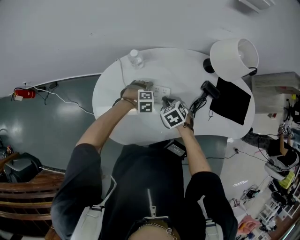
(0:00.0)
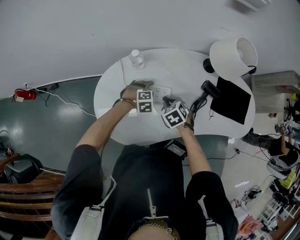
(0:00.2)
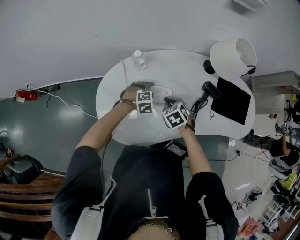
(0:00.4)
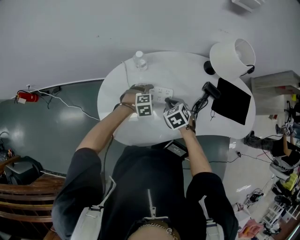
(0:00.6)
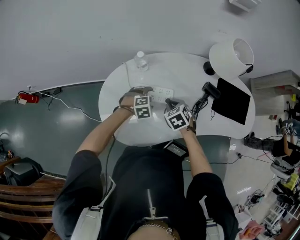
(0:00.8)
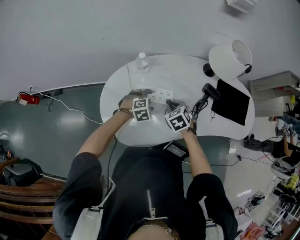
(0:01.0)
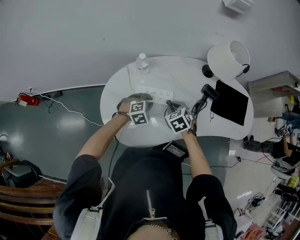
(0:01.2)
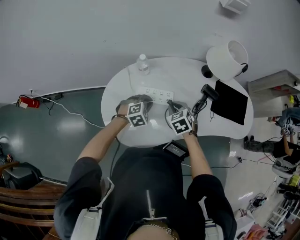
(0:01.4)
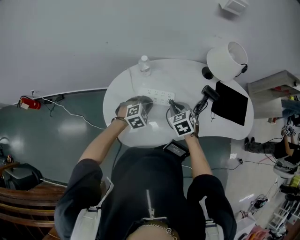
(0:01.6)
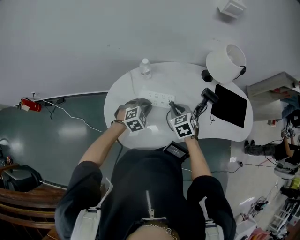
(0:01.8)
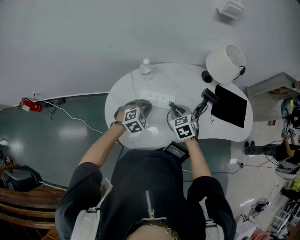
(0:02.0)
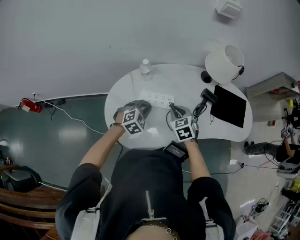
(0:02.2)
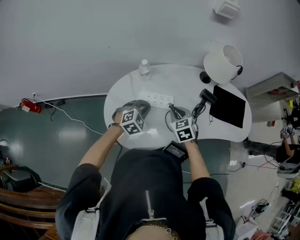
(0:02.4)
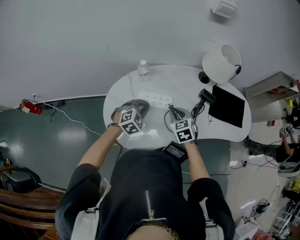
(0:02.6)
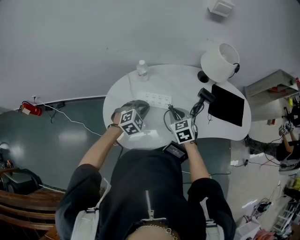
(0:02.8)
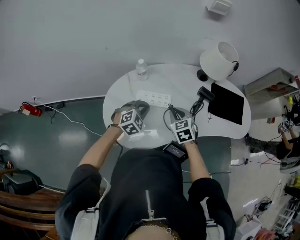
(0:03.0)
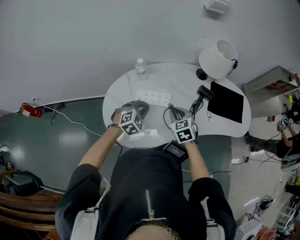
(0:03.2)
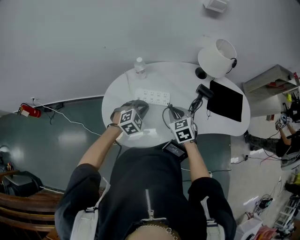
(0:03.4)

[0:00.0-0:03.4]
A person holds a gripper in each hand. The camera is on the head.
0:00.0 to 0:01.6: The right gripper goes about 5 cm upward; the left gripper is displaced upward and backward by some 15 cm, rotates some 30 degrees, and closes.
0:01.6 to 0:03.4: The left gripper shifts by some 5 cm. The right gripper changes place by approximately 5 cm.

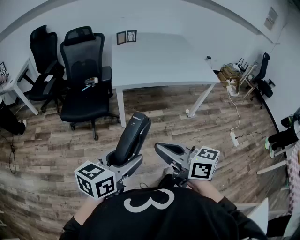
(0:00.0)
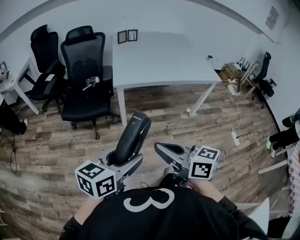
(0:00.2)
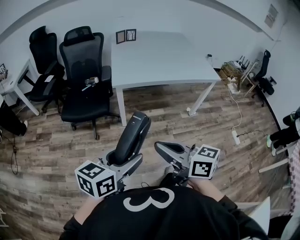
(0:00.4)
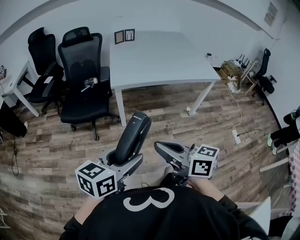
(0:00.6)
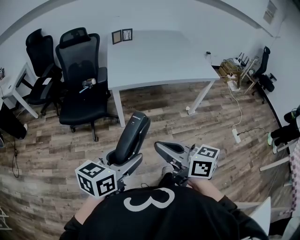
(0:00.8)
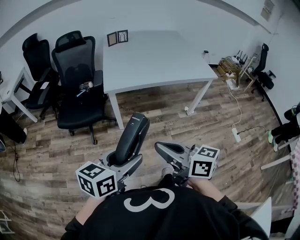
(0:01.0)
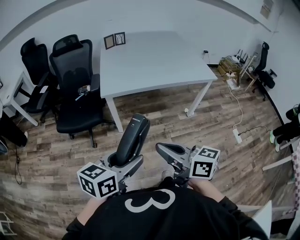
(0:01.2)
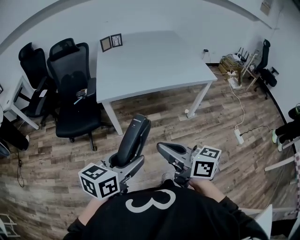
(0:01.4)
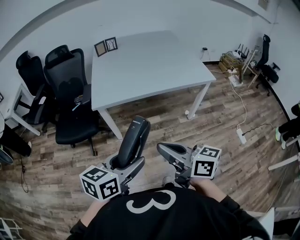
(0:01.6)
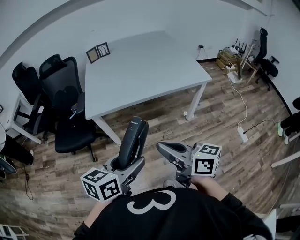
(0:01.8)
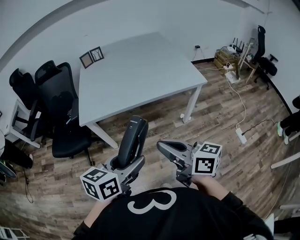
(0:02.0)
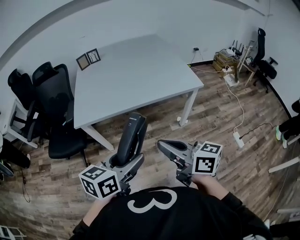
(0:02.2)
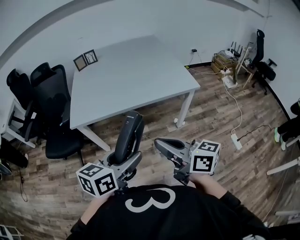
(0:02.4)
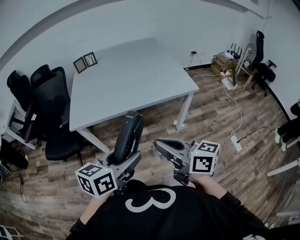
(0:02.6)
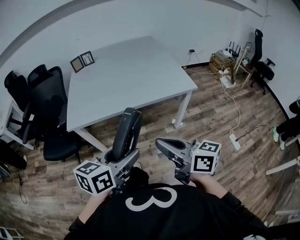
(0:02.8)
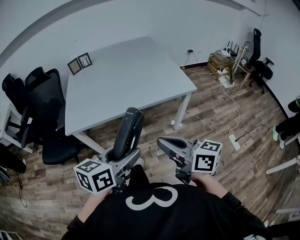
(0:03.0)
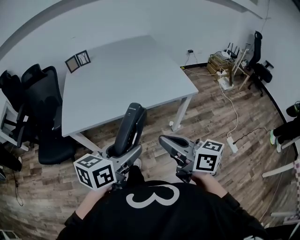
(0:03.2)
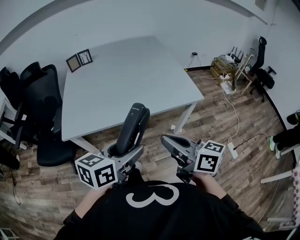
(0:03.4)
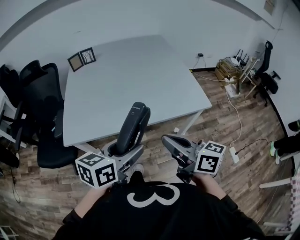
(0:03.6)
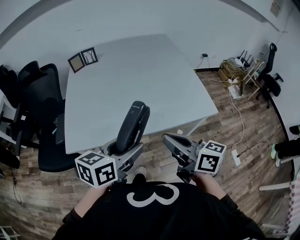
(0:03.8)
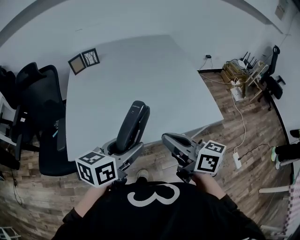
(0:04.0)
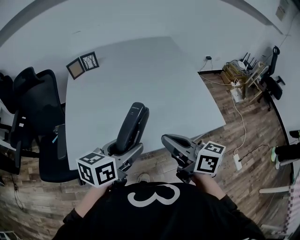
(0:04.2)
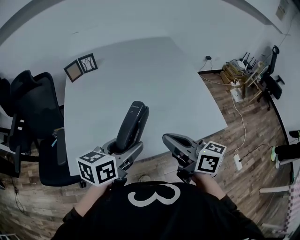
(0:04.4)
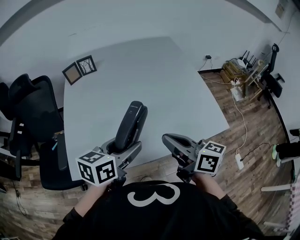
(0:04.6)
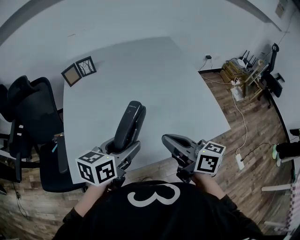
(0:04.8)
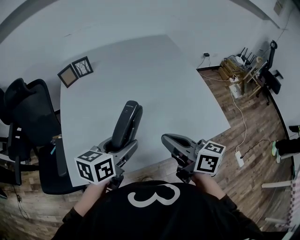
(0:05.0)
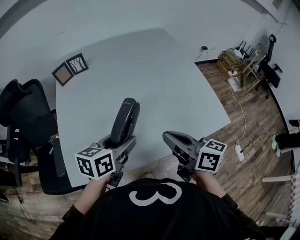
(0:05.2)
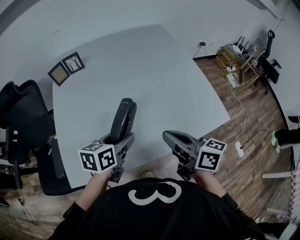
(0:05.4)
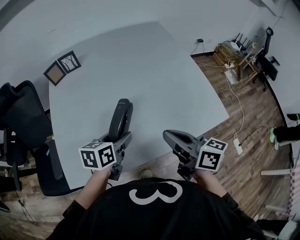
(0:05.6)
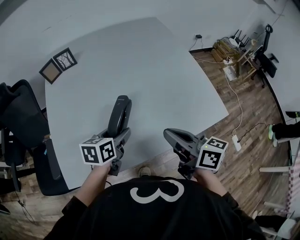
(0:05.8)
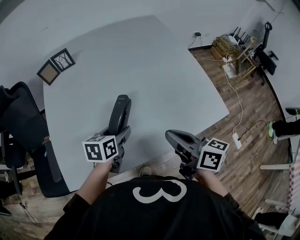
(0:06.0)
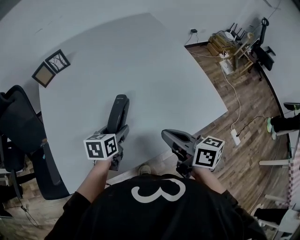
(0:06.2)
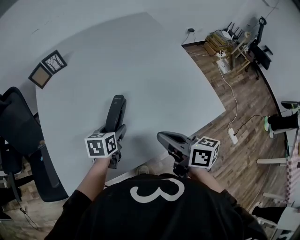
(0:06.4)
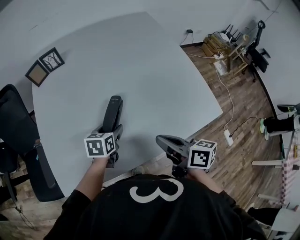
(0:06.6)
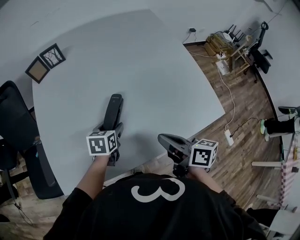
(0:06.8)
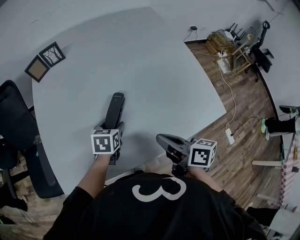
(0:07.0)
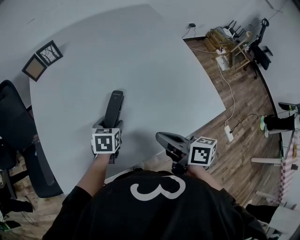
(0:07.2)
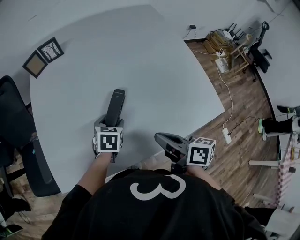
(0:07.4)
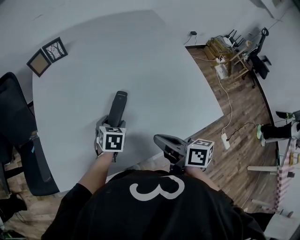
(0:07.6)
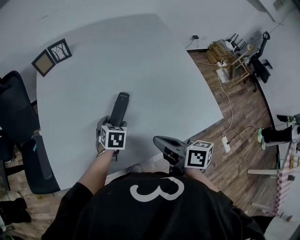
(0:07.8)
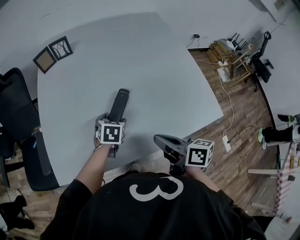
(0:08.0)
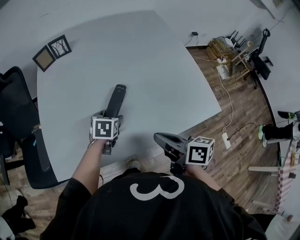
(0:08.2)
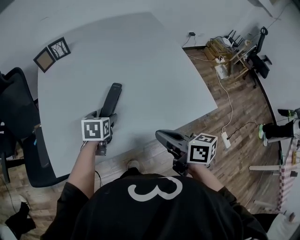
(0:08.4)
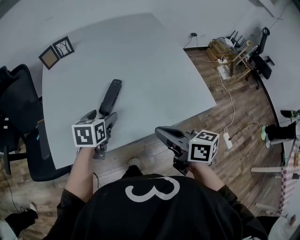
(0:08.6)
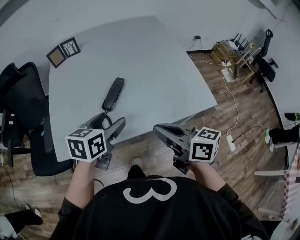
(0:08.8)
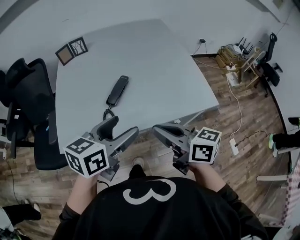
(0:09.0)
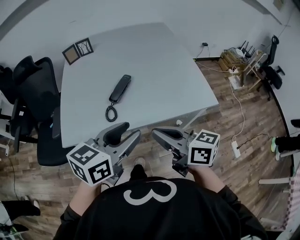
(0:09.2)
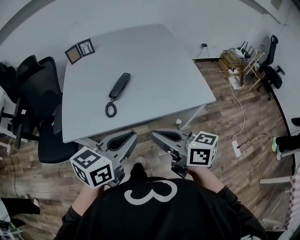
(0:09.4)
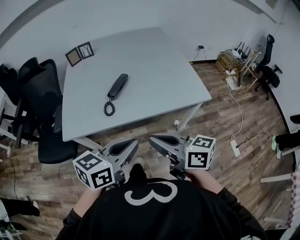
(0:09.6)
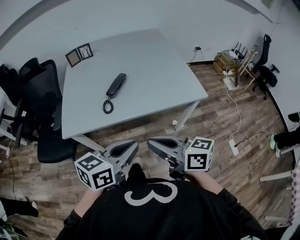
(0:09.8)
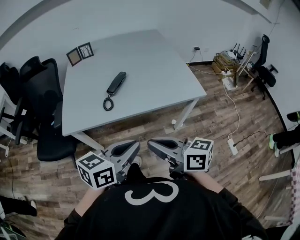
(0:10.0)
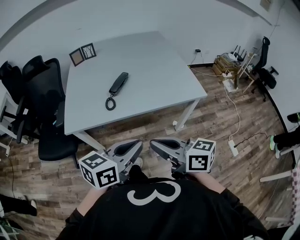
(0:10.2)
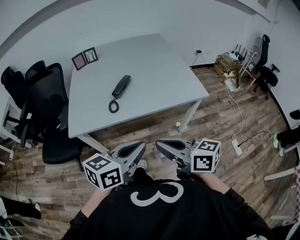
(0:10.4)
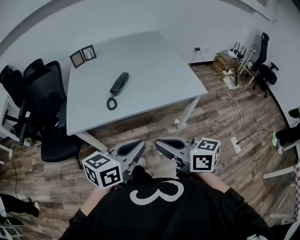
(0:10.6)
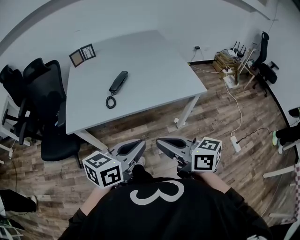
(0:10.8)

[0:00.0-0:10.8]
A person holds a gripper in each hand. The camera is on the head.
0:00.0 to 0:01.6: Both grippers travel together to the right and forward, roughly 20 cm.
0:01.6 to 0:03.0: Both grippers move to the right and forward, approximately 20 cm.
0:03.0 to 0:04.6: The two grippers go some 35 cm forward.
0:04.6 to 0:06.2: The left gripper travels downward and forward by some 20 cm, while the right gripper travels downward by approximately 10 cm.
0:06.2 to 0:07.8: The left gripper is displaced downward by about 5 cm, and turns by roughly 30 degrees.
0:07.8 to 0:09.2: The right gripper travels backward and upward by approximately 20 cm, and rotates approximately 30 degrees, while the left gripper is displaced backward and upward by roughly 40 cm, and tilts its fingers roughly 40 degrees upward.
0:09.2 to 0:10.8: The two grippers go roughly 15 cm backward. The left gripper closes up.

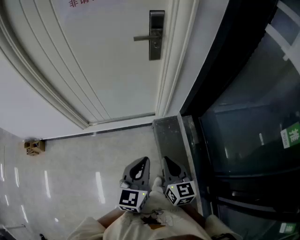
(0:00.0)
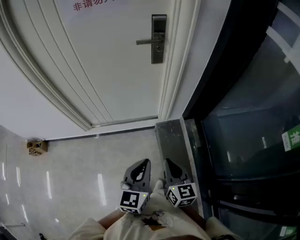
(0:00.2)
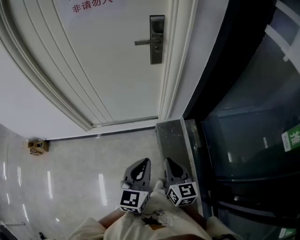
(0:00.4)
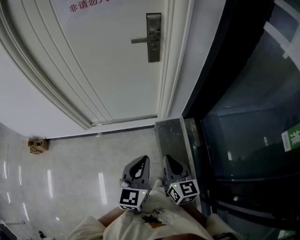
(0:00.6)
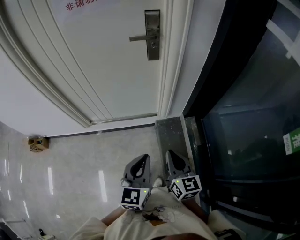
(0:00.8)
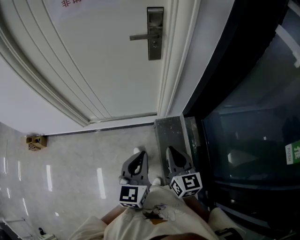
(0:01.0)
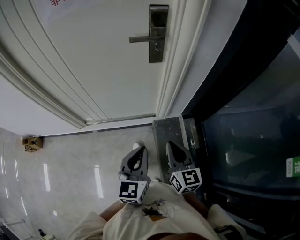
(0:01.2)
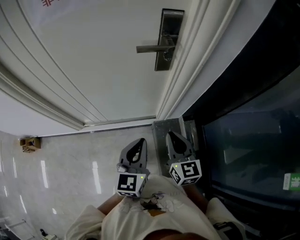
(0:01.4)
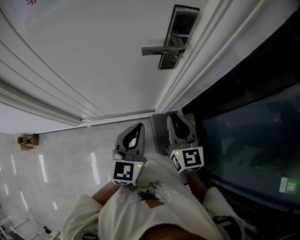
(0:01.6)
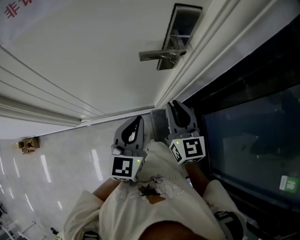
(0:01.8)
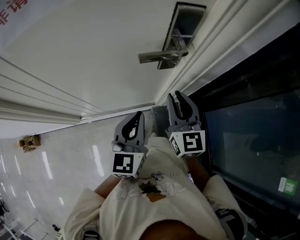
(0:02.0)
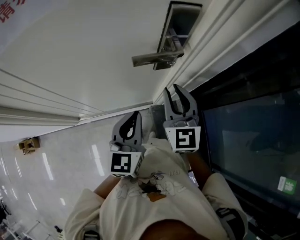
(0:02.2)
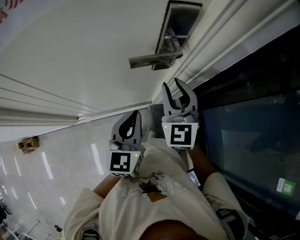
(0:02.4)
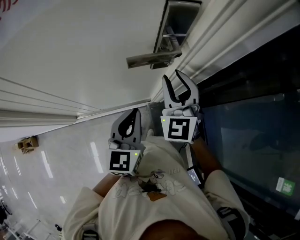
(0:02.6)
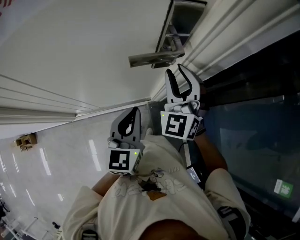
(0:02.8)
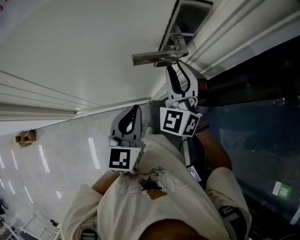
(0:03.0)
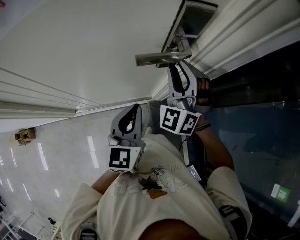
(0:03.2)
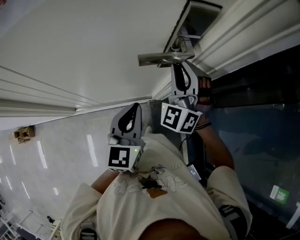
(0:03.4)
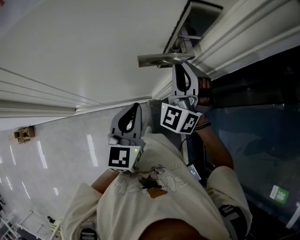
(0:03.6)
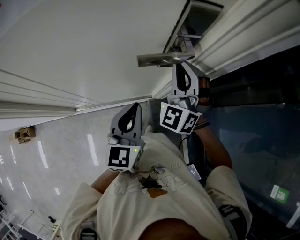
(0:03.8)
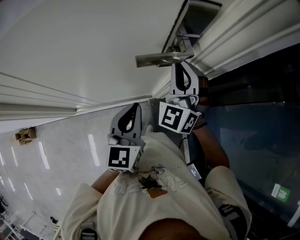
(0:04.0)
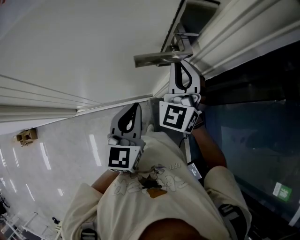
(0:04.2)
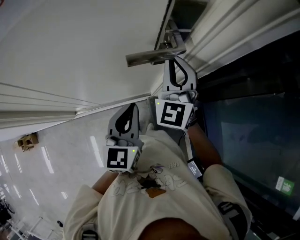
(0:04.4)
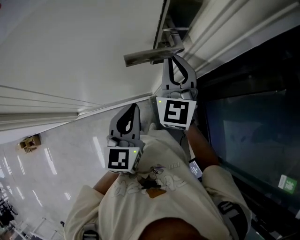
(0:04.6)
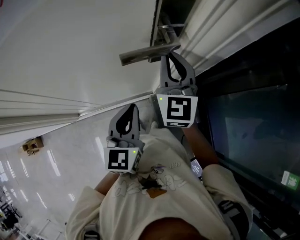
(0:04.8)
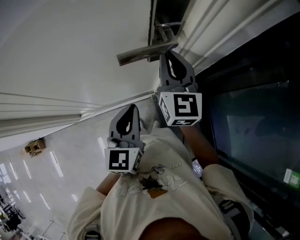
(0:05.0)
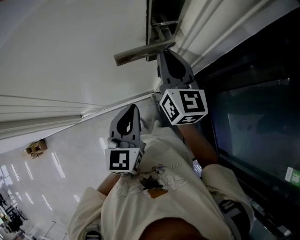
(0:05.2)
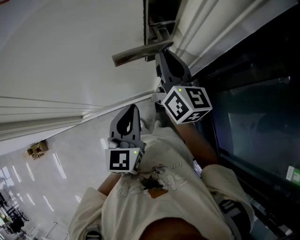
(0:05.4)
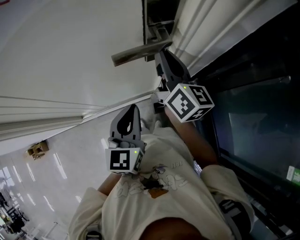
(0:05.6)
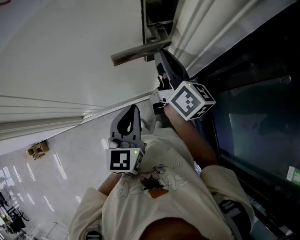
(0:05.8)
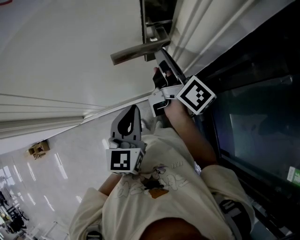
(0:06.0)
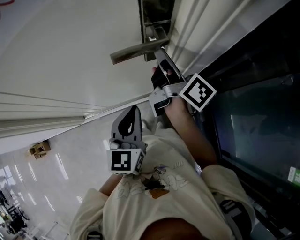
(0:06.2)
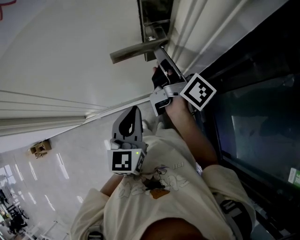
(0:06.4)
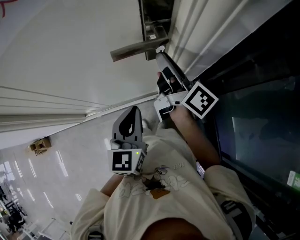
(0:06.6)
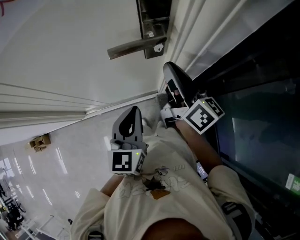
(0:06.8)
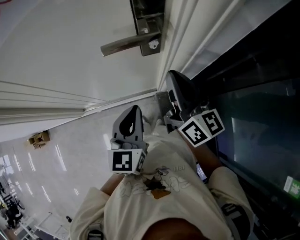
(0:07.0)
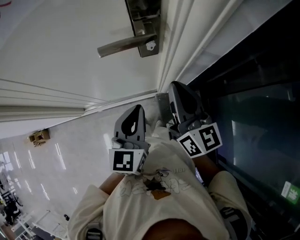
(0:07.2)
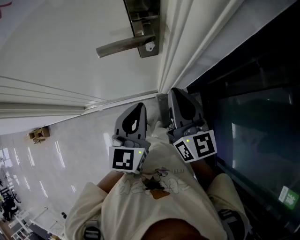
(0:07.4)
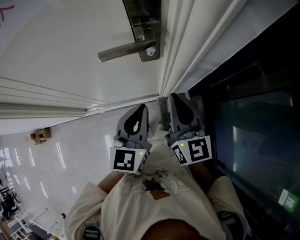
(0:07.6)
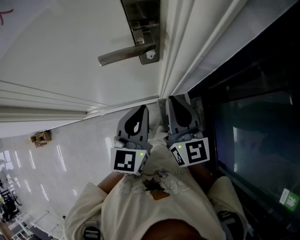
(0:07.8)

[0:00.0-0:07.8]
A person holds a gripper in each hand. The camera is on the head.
0:00.0 to 0:01.6: The grippers both shift forward by about 30 cm.
0:01.6 to 0:03.2: The left gripper heads forward, covering roughly 10 cm; the right gripper travels forward by about 20 cm, twists roughly 60 degrees counterclockwise, seen from behind, and opens.
0:03.2 to 0:04.6: The right gripper rotates around the line of its fingers by about 40 degrees, clockwise from behind, and closes up.
0:04.6 to 0:06.2: The right gripper twists about 90 degrees clockwise, seen from behind.
0:06.2 to 0:07.8: The left gripper is displaced to the right by some 5 cm. The right gripper shifts roughly 15 cm backward, and rotates around the line of its fingers by roughly 50 degrees, counterclockwise from behind.

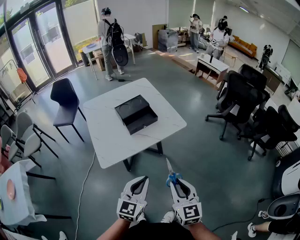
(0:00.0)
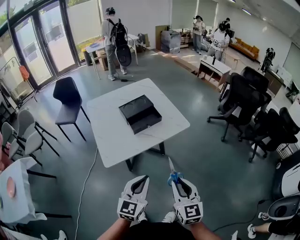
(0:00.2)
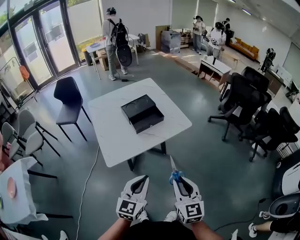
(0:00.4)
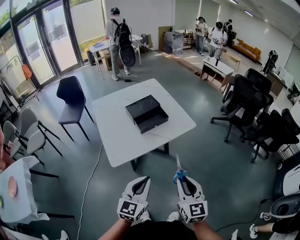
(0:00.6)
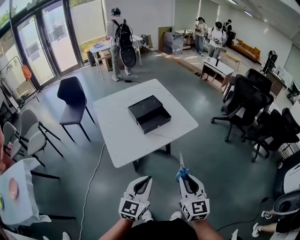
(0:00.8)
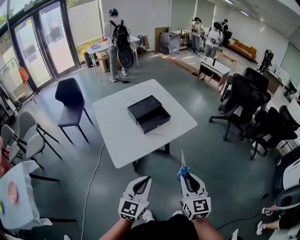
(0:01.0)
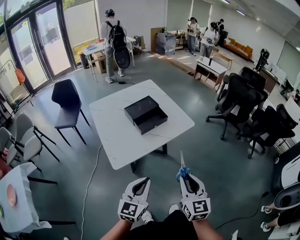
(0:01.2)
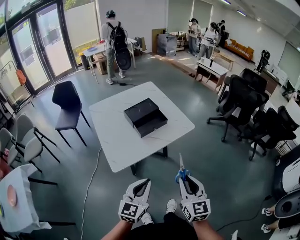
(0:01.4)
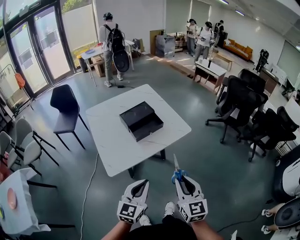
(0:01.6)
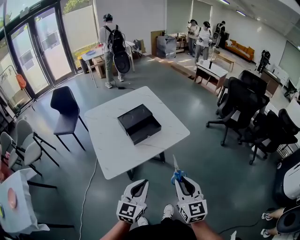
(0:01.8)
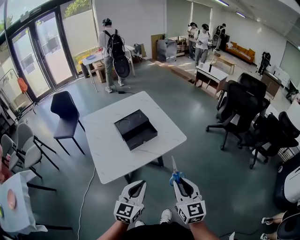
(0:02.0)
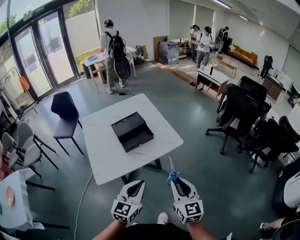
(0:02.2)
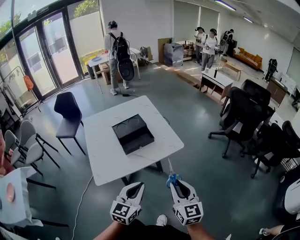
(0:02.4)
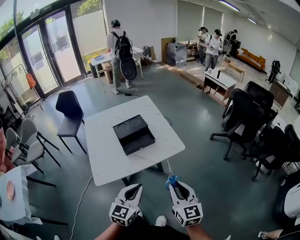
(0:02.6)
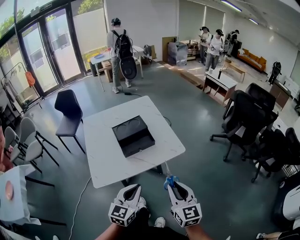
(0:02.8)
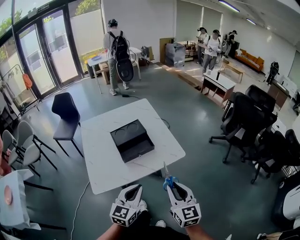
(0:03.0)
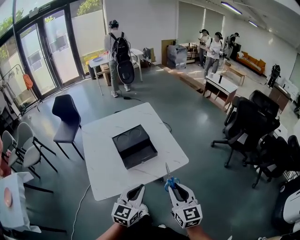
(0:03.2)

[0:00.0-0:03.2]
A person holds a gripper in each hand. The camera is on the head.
0:00.0 to 0:01.6: The left gripper moves to the left, approximately 5 cm, while the right gripper moves about 5 cm.
0:01.6 to 0:03.2: The grippers both shift forward by about 15 cm.
